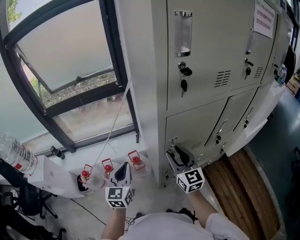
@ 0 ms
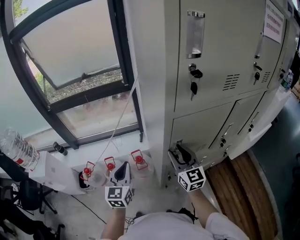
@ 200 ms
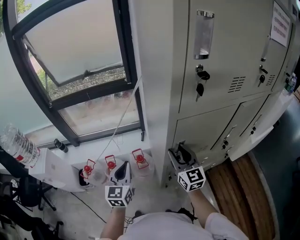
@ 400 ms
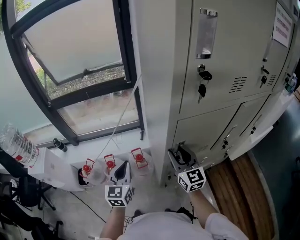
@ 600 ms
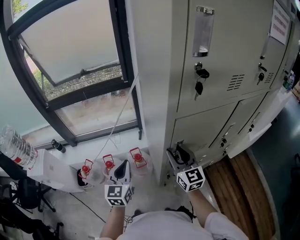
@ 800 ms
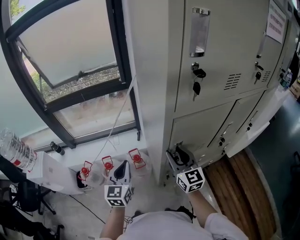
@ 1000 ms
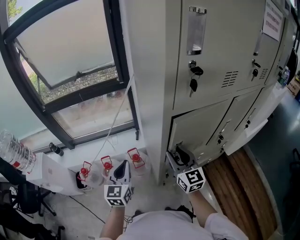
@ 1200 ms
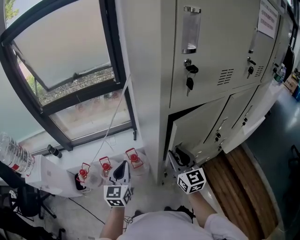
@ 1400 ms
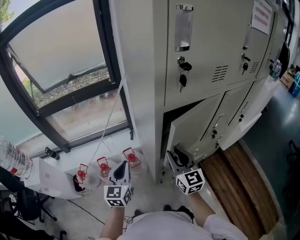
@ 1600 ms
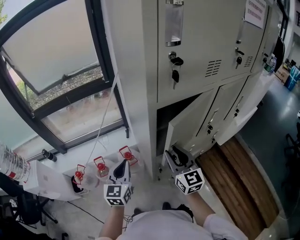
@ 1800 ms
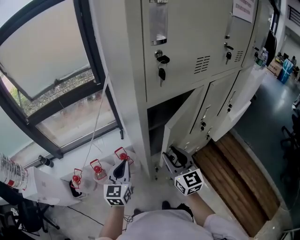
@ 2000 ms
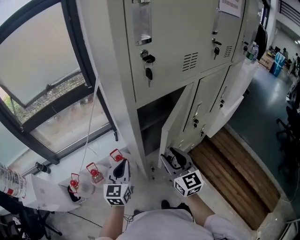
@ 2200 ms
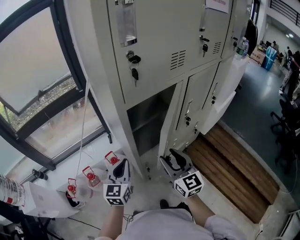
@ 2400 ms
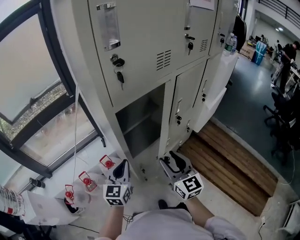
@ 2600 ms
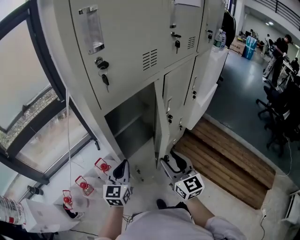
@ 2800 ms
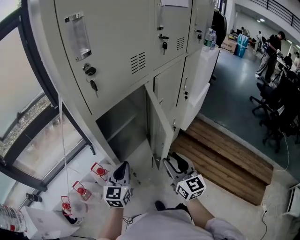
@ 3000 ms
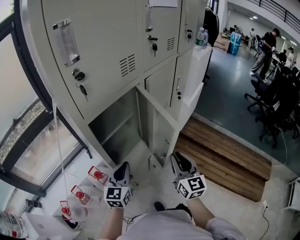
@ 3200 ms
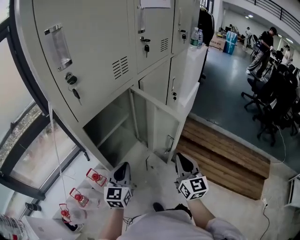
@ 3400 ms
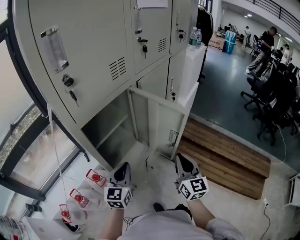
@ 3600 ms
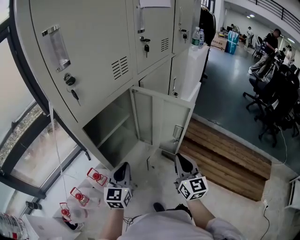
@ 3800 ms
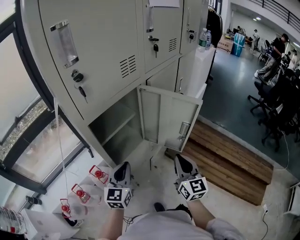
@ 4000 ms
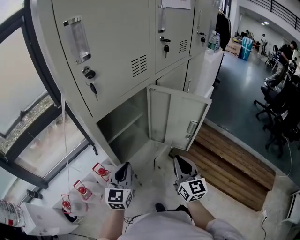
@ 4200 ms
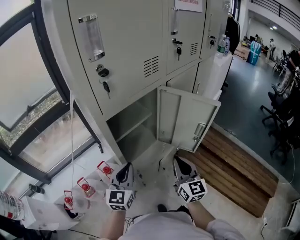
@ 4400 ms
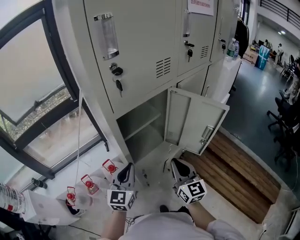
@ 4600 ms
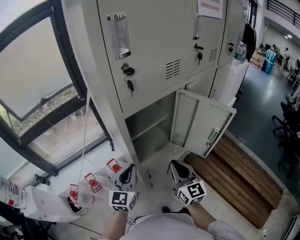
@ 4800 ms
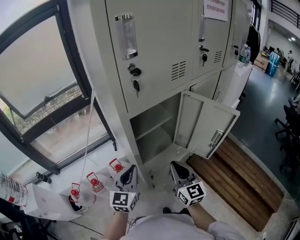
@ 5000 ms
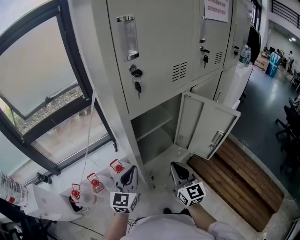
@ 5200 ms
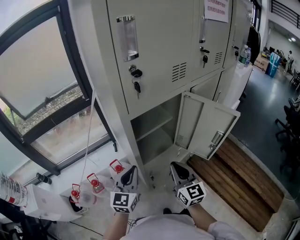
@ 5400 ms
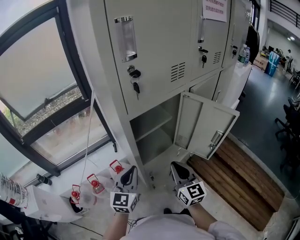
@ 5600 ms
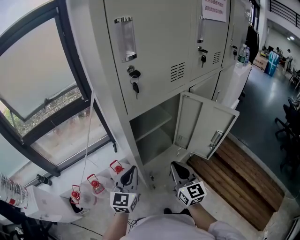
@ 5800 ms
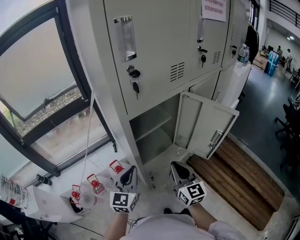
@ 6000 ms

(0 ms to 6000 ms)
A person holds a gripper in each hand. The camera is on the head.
0 ms - 1600 ms: There are only small adjustments of the grippers.
1600 ms - 3000 ms: The left gripper ends up some 20 cm from where it was, and turns by about 30 degrees; the right gripper shifts by approximately 20 cm, and changes its angle by roughly 30 degrees.
3000 ms - 4400 ms: The right gripper goes to the right and returns, roughly 10 cm each way, and closes its fingers.
4400 ms - 6000 ms: The left gripper goes approximately 5 cm to the left. The right gripper moves to the left, approximately 10 cm.

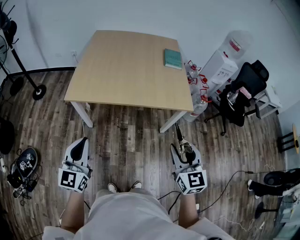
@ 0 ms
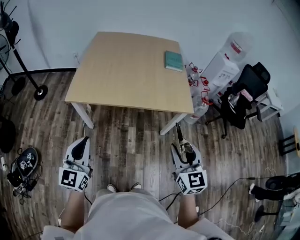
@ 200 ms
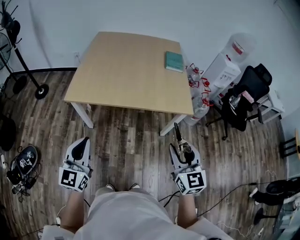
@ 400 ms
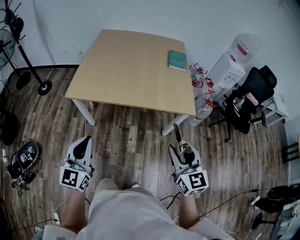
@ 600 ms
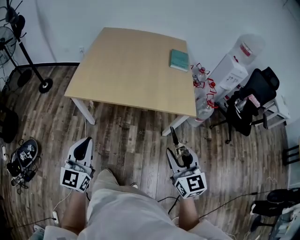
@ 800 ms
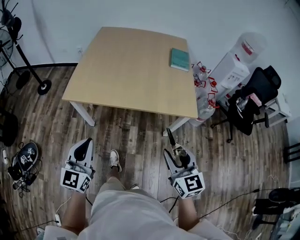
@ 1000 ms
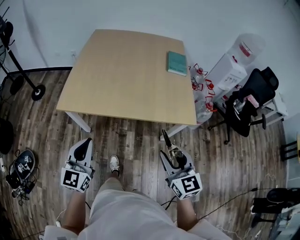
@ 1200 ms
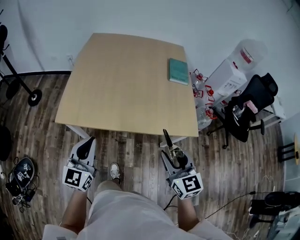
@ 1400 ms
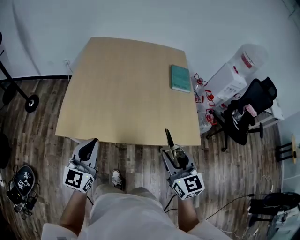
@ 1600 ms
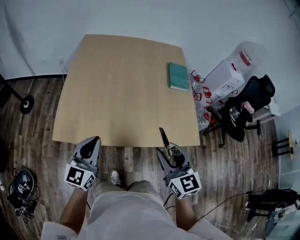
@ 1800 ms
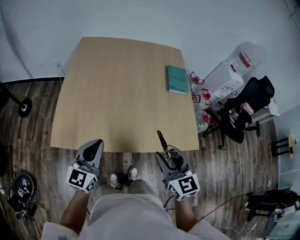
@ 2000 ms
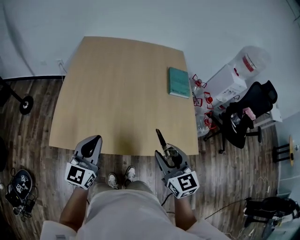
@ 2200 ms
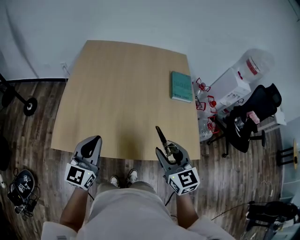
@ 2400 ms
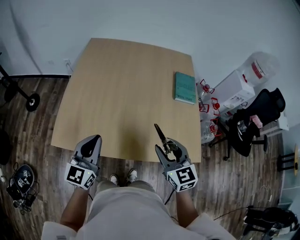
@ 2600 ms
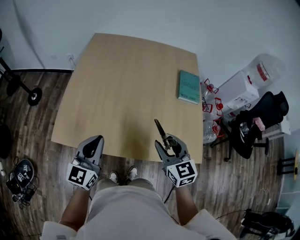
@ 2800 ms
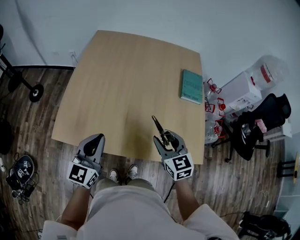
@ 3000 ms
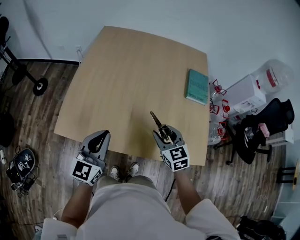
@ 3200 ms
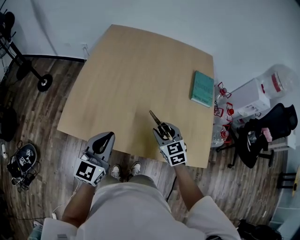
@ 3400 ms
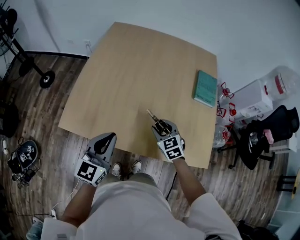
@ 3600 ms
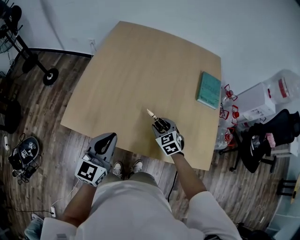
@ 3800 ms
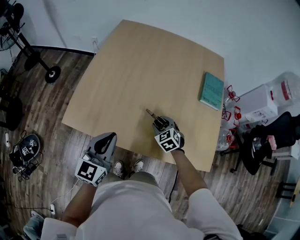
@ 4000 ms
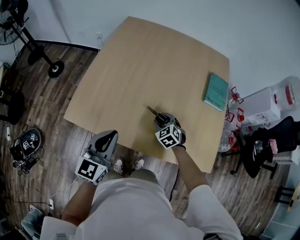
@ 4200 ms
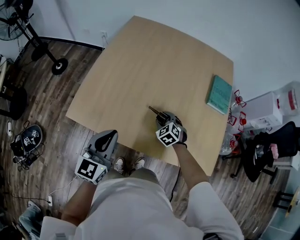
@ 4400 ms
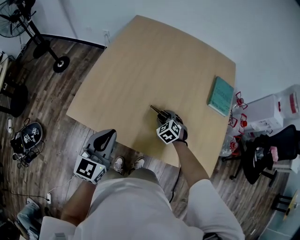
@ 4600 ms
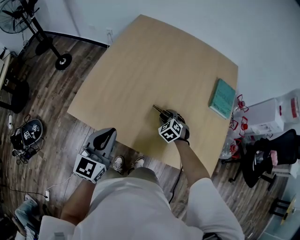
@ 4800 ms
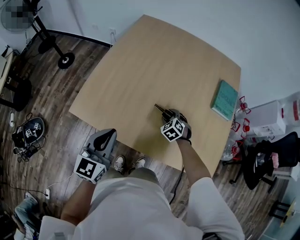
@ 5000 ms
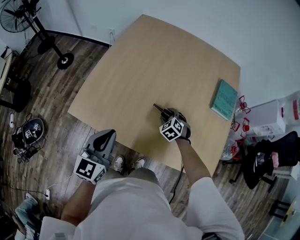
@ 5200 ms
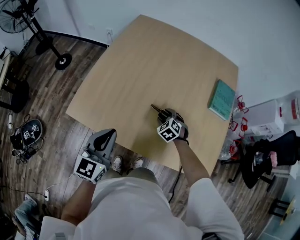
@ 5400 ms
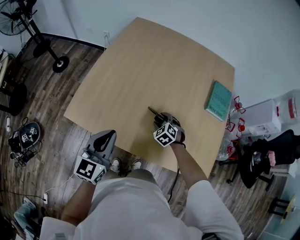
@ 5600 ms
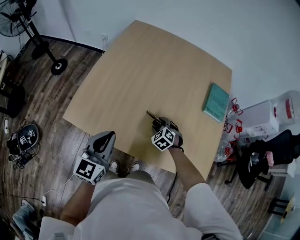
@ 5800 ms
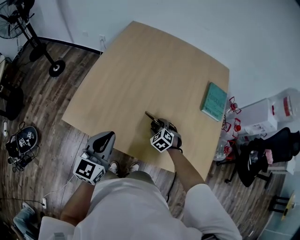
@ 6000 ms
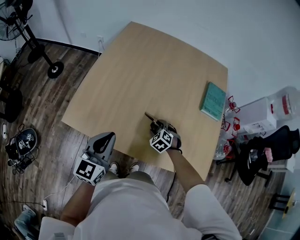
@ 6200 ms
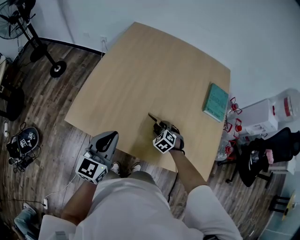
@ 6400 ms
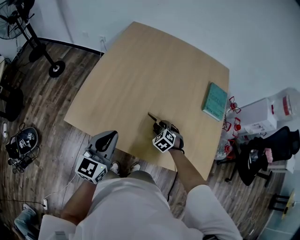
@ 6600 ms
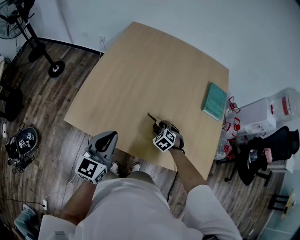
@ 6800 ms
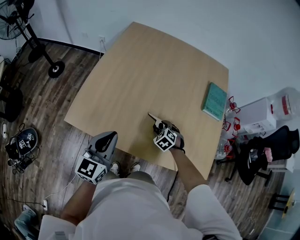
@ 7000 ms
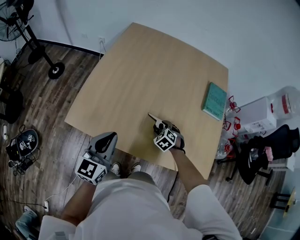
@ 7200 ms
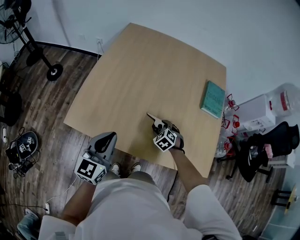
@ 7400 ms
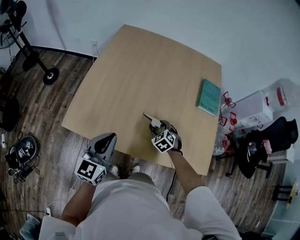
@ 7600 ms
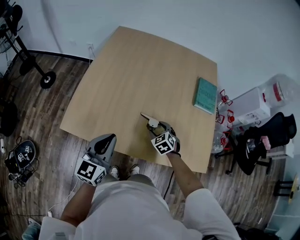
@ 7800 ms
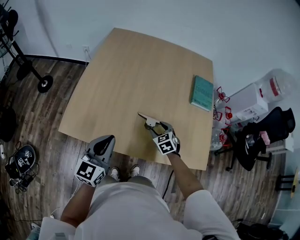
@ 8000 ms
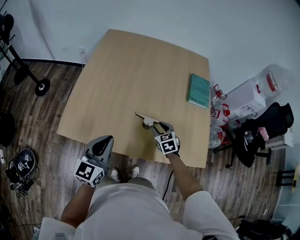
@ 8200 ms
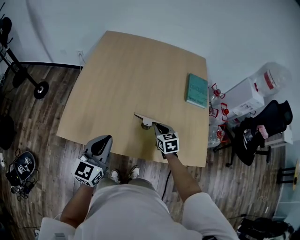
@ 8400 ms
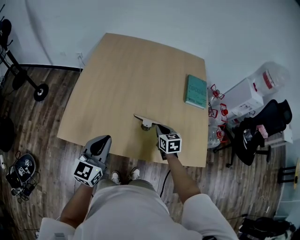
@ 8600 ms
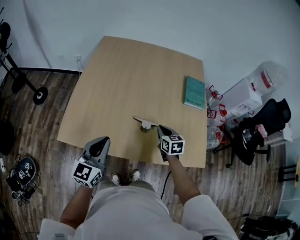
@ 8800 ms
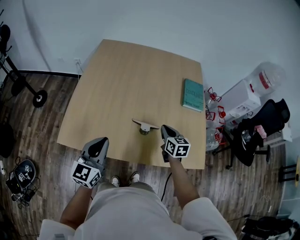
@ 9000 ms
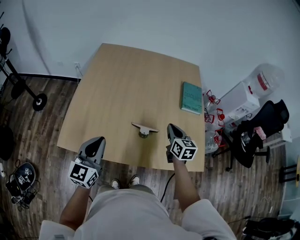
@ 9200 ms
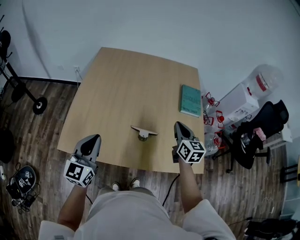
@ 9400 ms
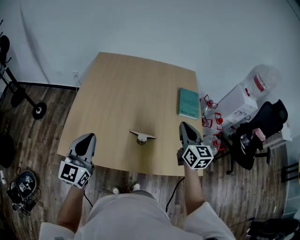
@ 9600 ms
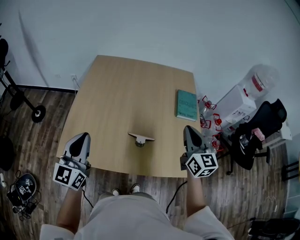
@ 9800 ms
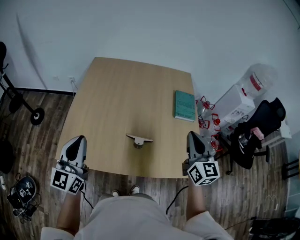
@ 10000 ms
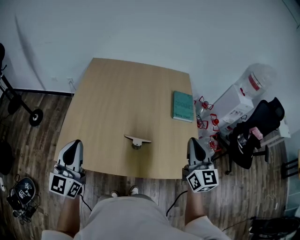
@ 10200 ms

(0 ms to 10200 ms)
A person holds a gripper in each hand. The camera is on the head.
0 ms - 1400 ms: The grippers both shift forward by some 20 cm.
1400 ms - 3000 ms: Both grippers travel together forward, about 25 cm.
3000 ms - 4400 ms: The right gripper heads downward and forward, covering roughly 25 cm, and turns by about 40 degrees.
4400 ms - 7200 ms: There are only small adjustments of the grippers.
7200 ms - 8800 ms: The right gripper goes roughly 15 cm upward and to the right, twists roughly 50 degrees clockwise, seen from behind, and closes up.
8800 ms - 10200 ms: The left gripper shifts roughly 15 cm upward and to the left. The right gripper travels upward and to the right by roughly 30 cm, and points its fingers roughly 30 degrees further upward.

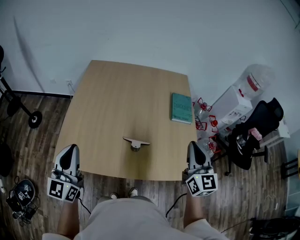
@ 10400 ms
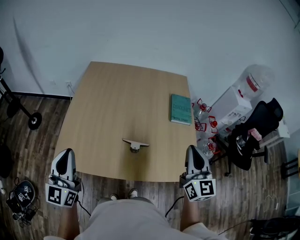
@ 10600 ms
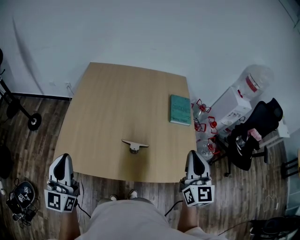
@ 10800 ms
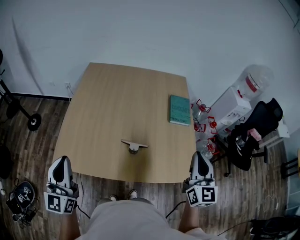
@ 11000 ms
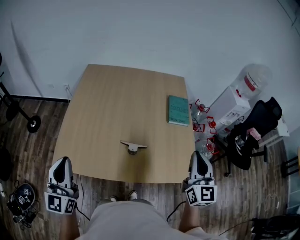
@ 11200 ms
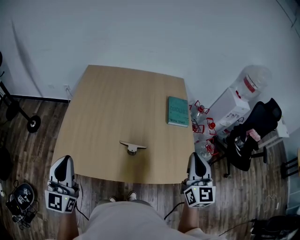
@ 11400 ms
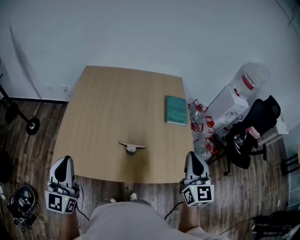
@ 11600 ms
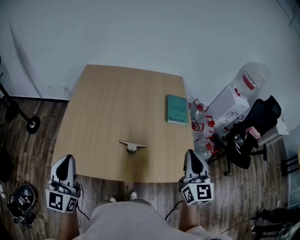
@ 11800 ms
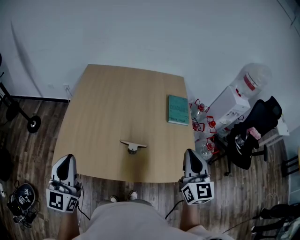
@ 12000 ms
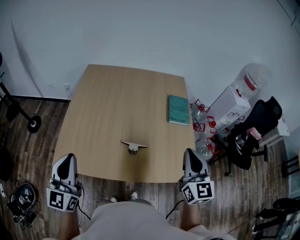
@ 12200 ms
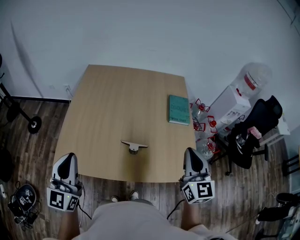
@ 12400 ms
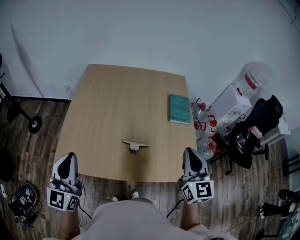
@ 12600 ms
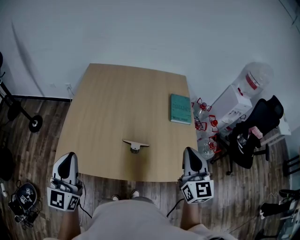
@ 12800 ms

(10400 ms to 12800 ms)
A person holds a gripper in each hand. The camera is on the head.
10400 ms - 12800 ms: The grippers stay close to where they were, moving slightly.

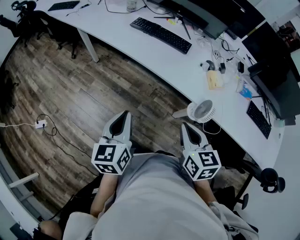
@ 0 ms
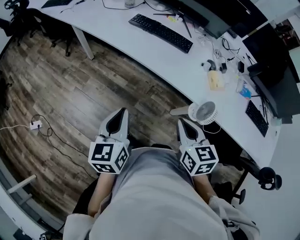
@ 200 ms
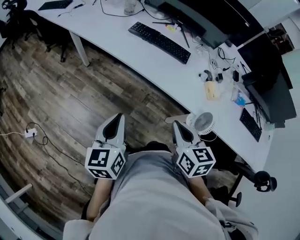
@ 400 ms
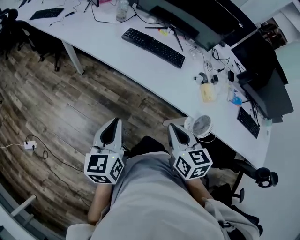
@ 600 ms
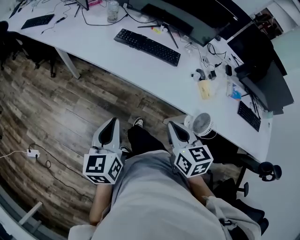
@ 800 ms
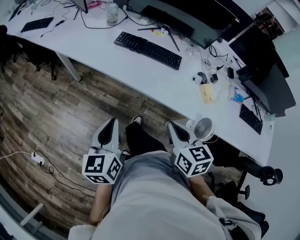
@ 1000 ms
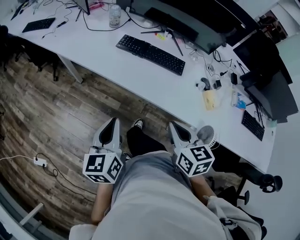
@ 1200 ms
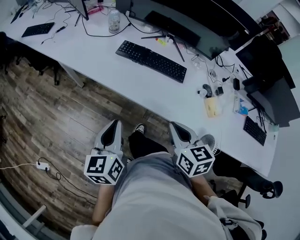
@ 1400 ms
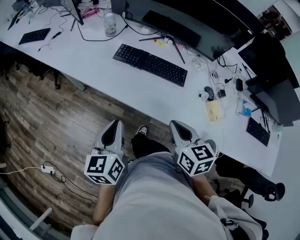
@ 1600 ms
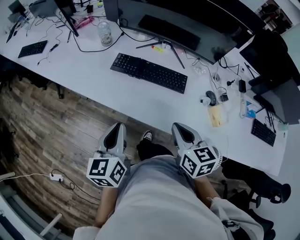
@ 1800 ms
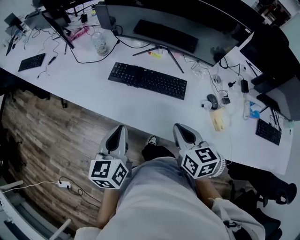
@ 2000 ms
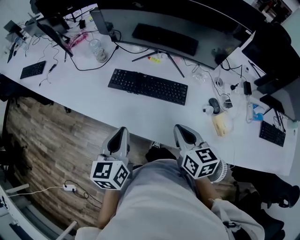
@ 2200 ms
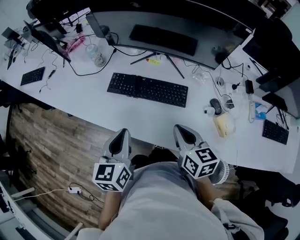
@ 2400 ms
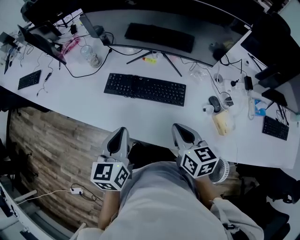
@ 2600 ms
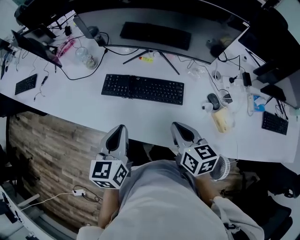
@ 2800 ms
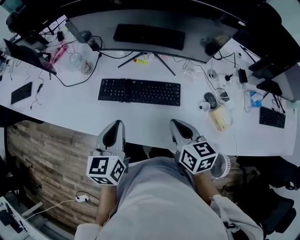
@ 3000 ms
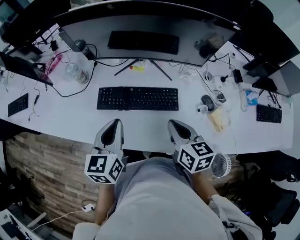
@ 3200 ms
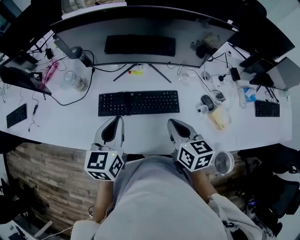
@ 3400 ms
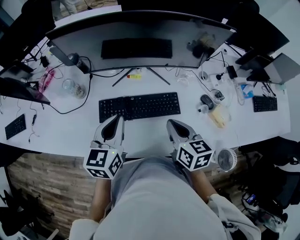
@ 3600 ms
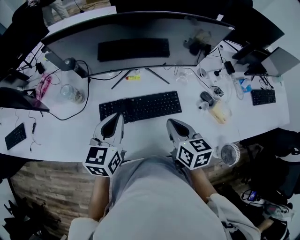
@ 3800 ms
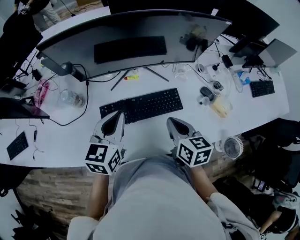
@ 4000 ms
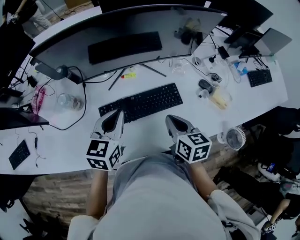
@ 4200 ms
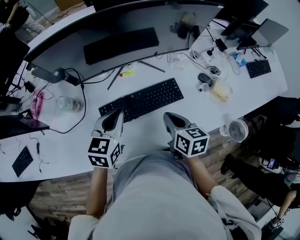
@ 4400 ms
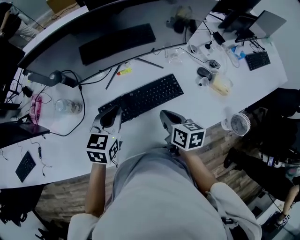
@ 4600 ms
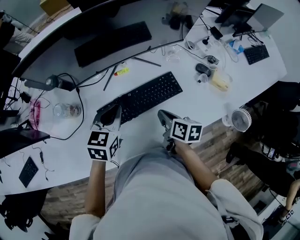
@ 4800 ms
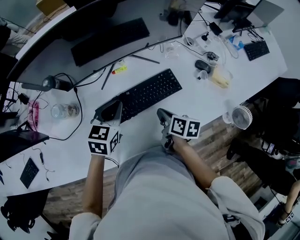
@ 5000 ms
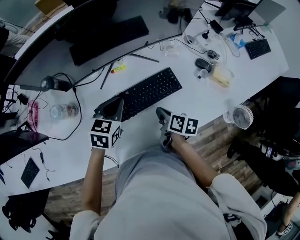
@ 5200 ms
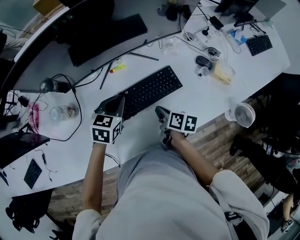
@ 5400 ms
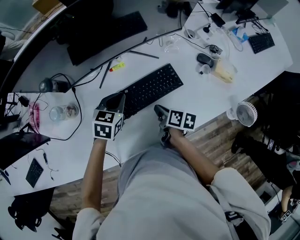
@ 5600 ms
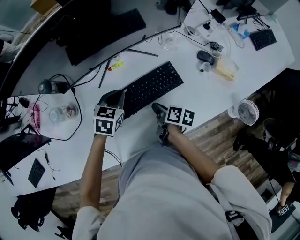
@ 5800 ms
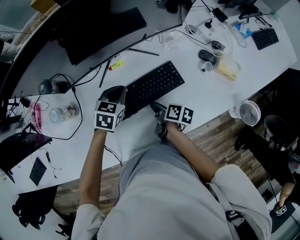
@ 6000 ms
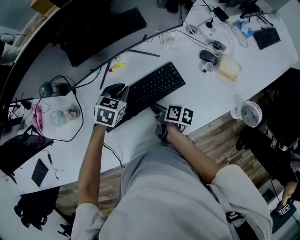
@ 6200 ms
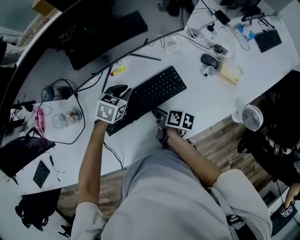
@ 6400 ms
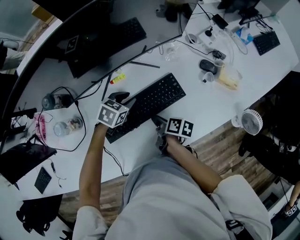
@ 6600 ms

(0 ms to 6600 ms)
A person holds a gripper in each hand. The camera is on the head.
0 ms - 1600 ms: The two grippers go roughly 30 cm forward.
1600 ms - 3200 ms: The two grippers go about 25 cm forward. The left gripper rotates approximately 20 degrees. Meanwhile the right gripper swivels some 20 degrees.
3200 ms - 5000 ms: The left gripper moves approximately 15 cm, and swivels approximately 50 degrees; the right gripper is displaced downward by some 15 cm, and rolls clockwise, seen from behind, by roughly 40 degrees.
5000 ms - 6600 ms: The right gripper shifts approximately 10 cm downward, and changes its angle by about 20 degrees. The left gripper goes roughly 15 cm downward, forward and to the right, and rotates about 30 degrees.
